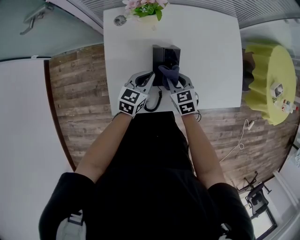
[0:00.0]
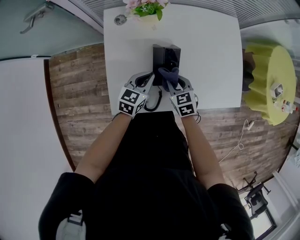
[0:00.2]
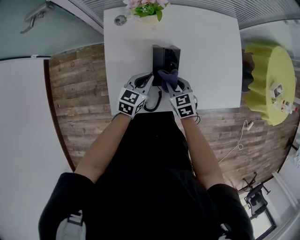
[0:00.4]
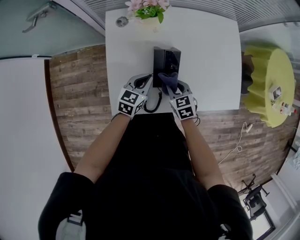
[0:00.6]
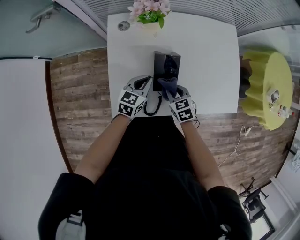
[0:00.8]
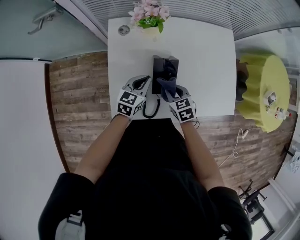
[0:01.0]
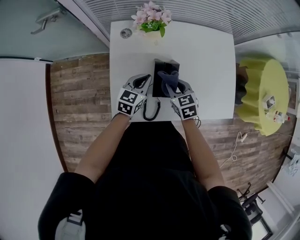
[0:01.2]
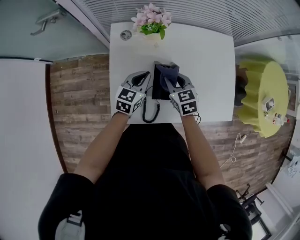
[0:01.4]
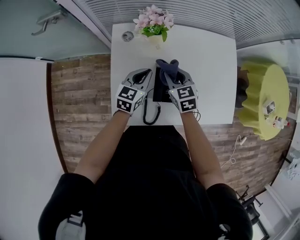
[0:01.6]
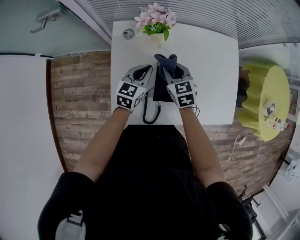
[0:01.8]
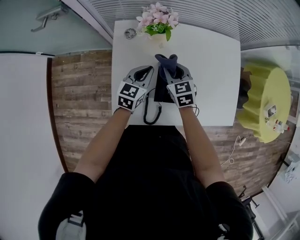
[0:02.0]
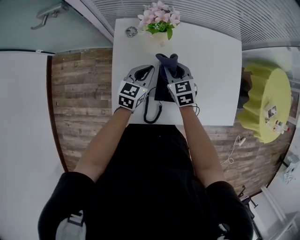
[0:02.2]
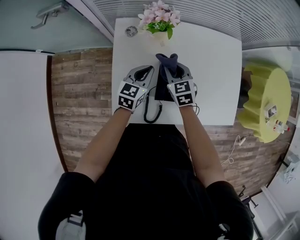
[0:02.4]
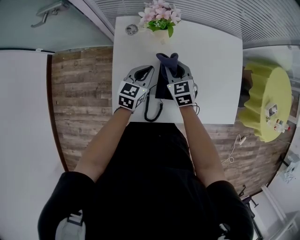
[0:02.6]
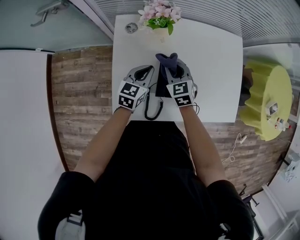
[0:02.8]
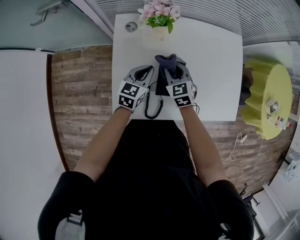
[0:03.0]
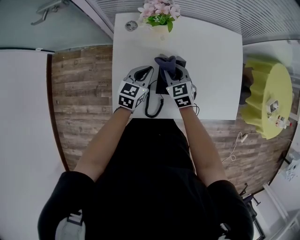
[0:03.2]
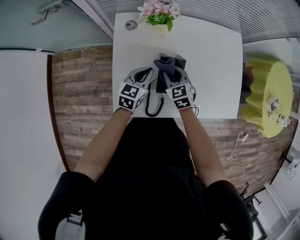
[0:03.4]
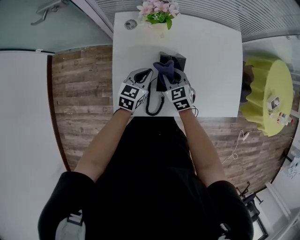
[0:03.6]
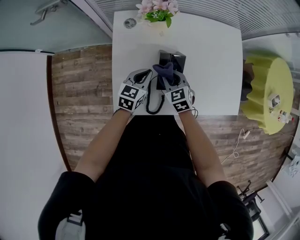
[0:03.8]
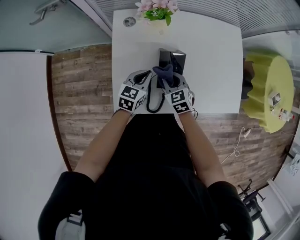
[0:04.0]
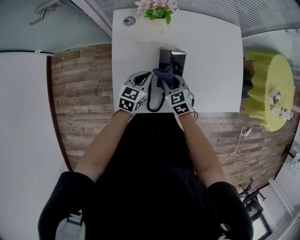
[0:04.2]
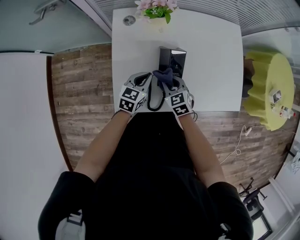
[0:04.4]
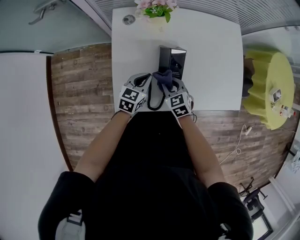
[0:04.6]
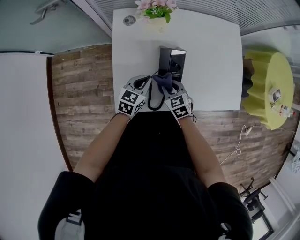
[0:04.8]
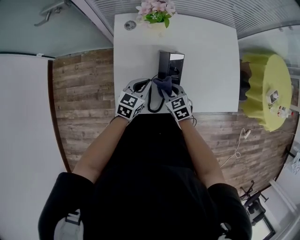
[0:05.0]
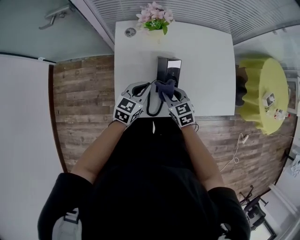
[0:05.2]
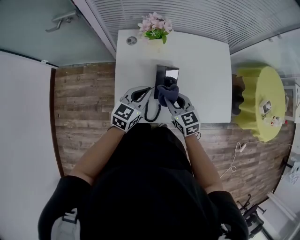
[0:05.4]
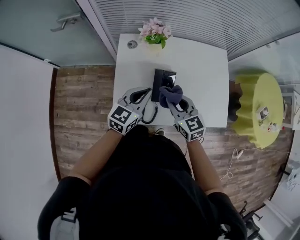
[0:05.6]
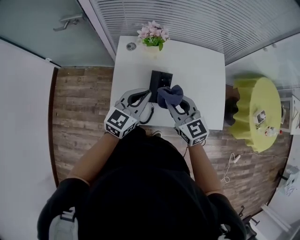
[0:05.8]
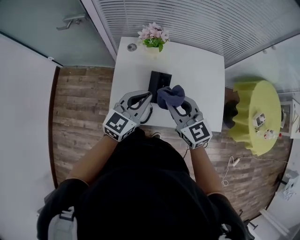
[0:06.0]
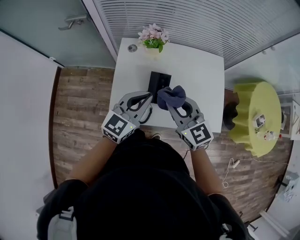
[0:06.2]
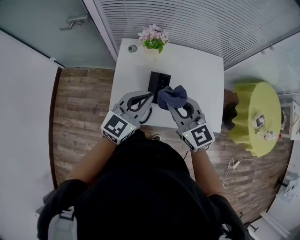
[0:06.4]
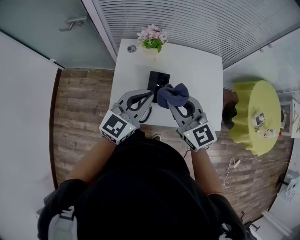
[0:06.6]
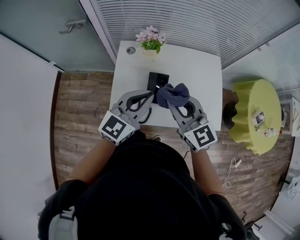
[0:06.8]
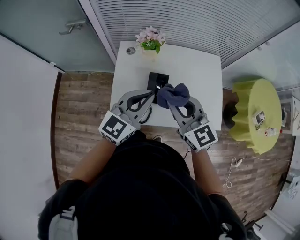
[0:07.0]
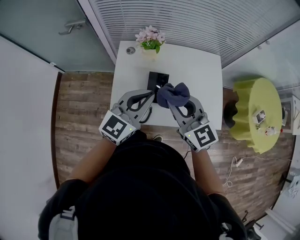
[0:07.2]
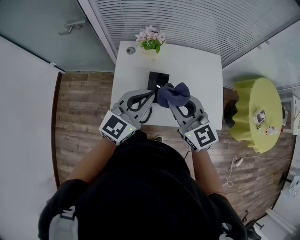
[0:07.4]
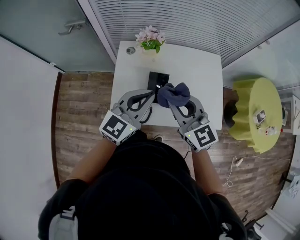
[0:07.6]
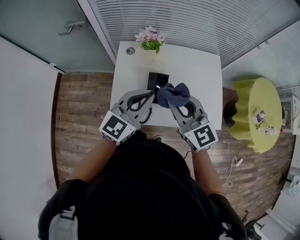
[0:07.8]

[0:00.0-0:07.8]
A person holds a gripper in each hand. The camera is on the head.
0:00.0 to 0:01.6: The grippers both shift forward and upward by about 10 cm.
0:01.6 to 0:03.2: The right gripper shifts approximately 5 cm downward.
0:03.2 to 0:04.6: The right gripper is displaced backward and downward by approximately 10 cm. The left gripper shifts about 5 cm backward.
0:04.6 to 0:06.2: Both grippers move upward, roughly 30 cm. The right gripper angles its fingers upward, by some 30 degrees. The left gripper turns by about 20 degrees.
0:06.2 to 0:07.8: The two grippers go roughly 5 cm upward.

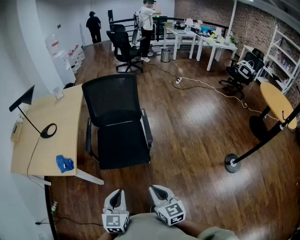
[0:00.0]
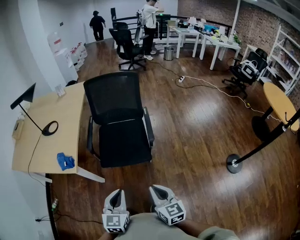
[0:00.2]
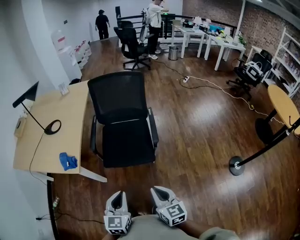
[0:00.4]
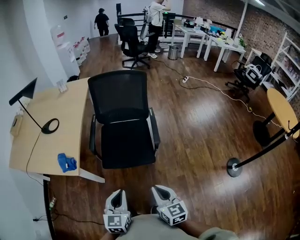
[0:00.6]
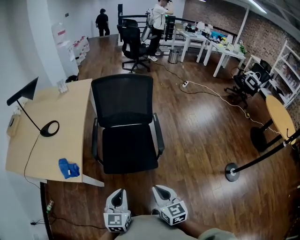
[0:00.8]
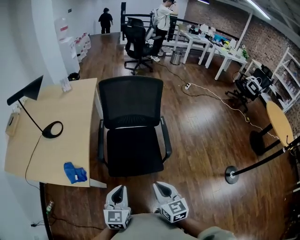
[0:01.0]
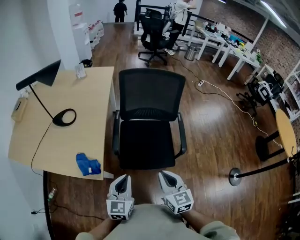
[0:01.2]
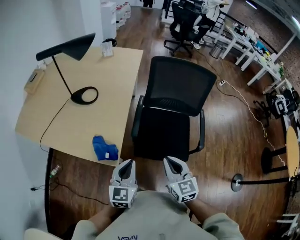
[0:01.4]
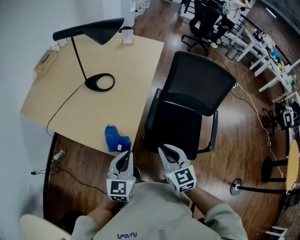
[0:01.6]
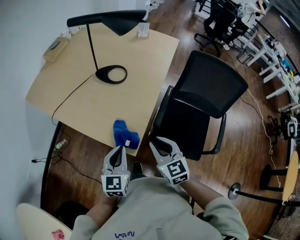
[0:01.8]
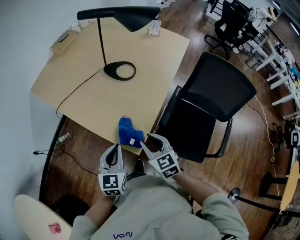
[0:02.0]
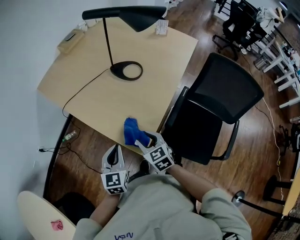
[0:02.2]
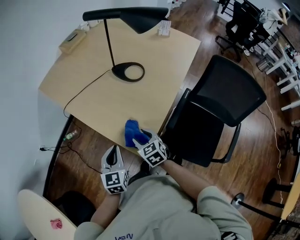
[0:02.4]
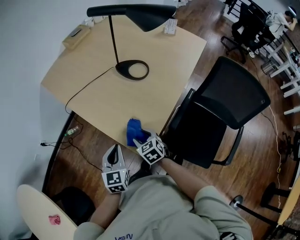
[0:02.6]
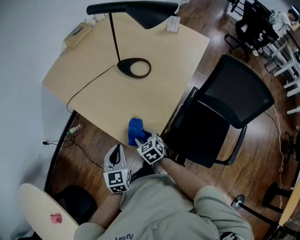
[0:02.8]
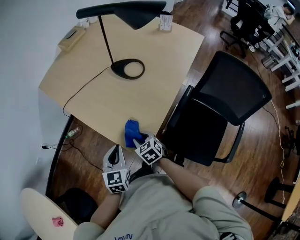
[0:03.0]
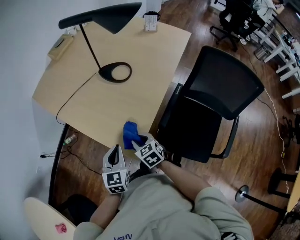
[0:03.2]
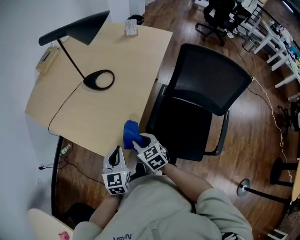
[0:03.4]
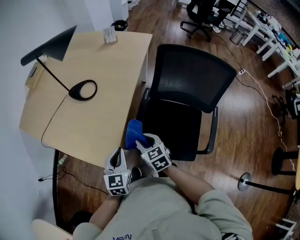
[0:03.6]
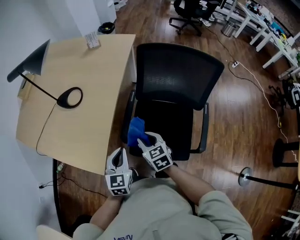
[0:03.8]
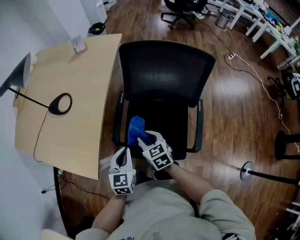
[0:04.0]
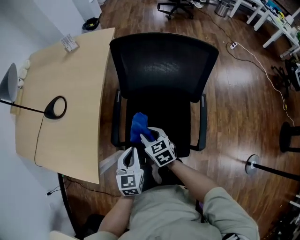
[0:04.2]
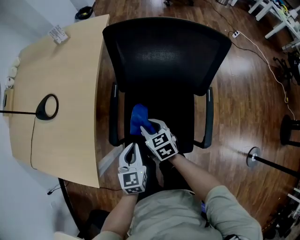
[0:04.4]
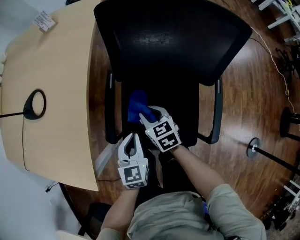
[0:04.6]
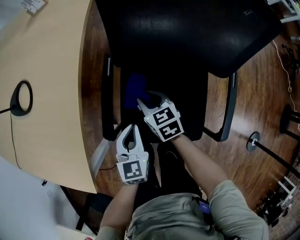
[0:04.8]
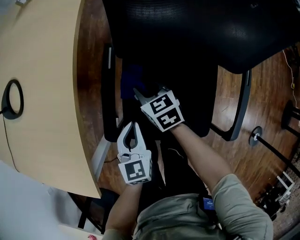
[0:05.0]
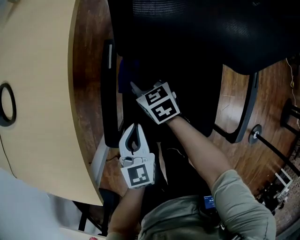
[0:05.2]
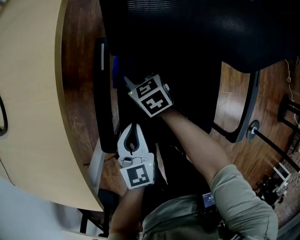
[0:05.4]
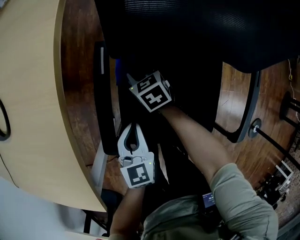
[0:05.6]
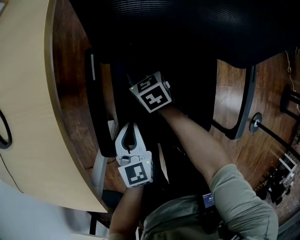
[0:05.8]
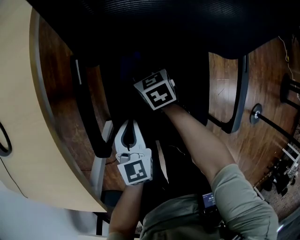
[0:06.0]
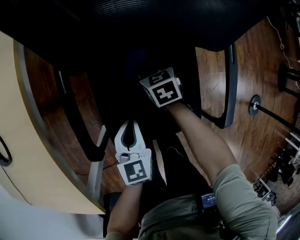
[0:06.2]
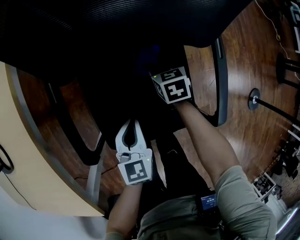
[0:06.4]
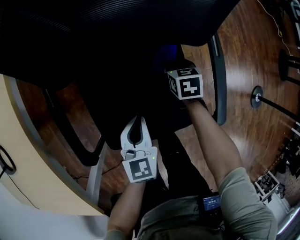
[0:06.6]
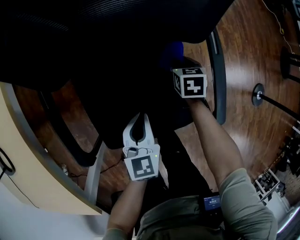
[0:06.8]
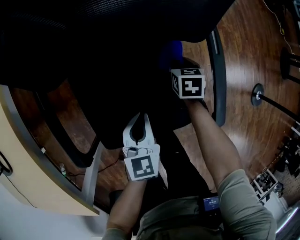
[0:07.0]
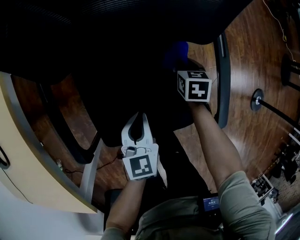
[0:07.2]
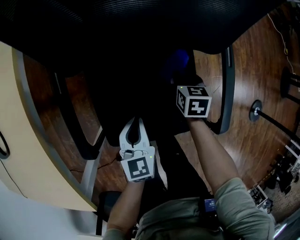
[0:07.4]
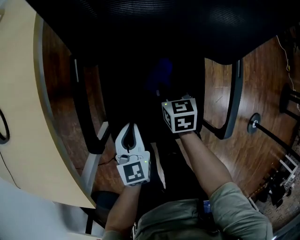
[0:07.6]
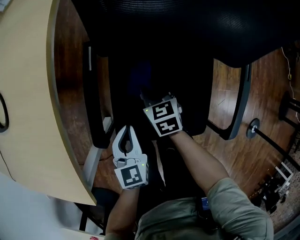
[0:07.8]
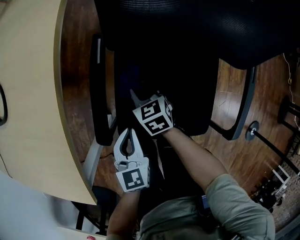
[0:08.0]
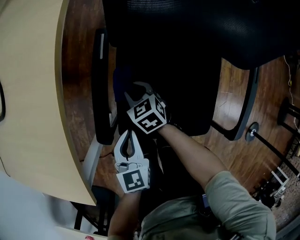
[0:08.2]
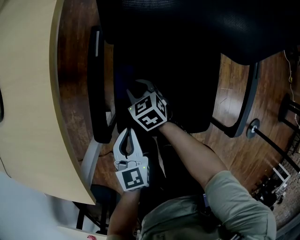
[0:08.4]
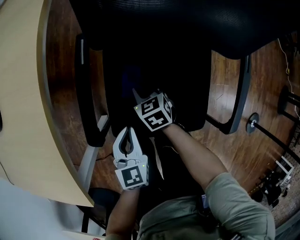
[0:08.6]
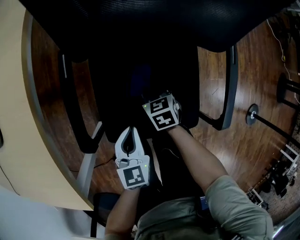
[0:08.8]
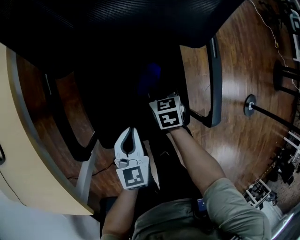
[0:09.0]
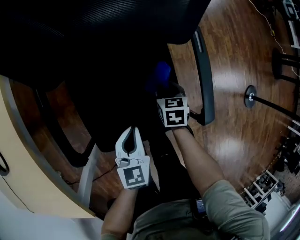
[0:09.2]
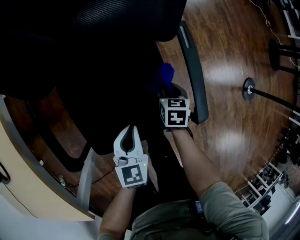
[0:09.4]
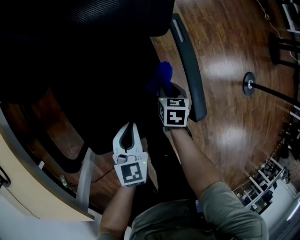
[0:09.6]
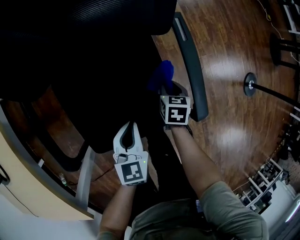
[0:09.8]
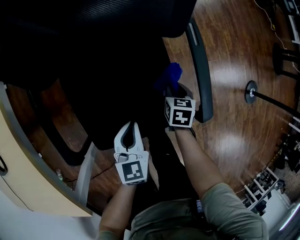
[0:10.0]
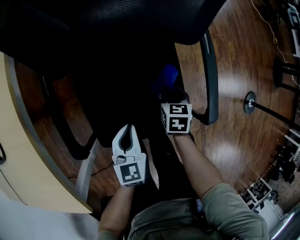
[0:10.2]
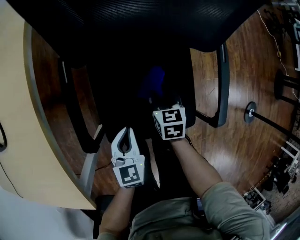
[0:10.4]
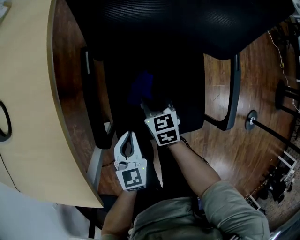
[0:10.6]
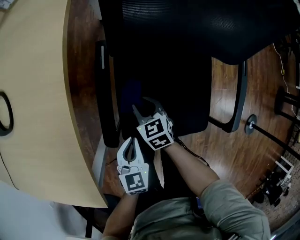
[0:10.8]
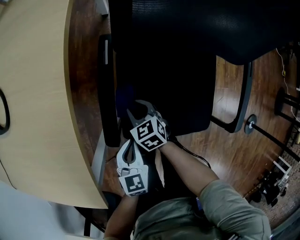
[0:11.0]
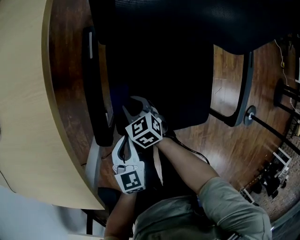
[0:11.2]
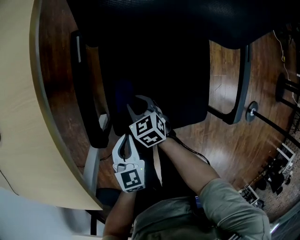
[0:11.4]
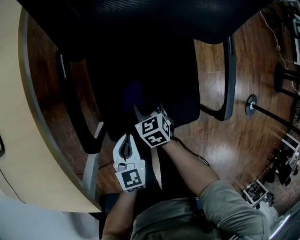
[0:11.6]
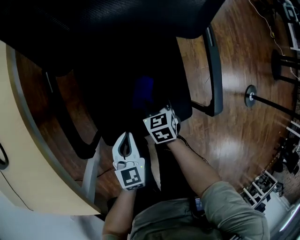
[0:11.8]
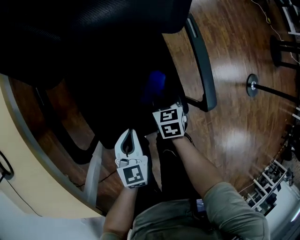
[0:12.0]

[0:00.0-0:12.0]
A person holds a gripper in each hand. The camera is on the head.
0:00.0 to 0:01.6: The two grippers travel together, to the left and forward, approximately 40 cm. The left gripper changes its angle by roughly 20 degrees, while the right gripper rotates approximately 30 degrees.
0:01.6 to 0:03.0: The left gripper changes place by about 15 cm, and changes its angle by about 30 degrees. The right gripper goes roughly 20 cm downward, rotates about 40 degrees, and opens its fingers.
0:03.0 to 0:04.4: The two grippers travel together, roughly 40 cm. The right gripper swivels approximately 40 degrees. Meanwhile the left gripper rotates approximately 30 degrees.
0:04.4 to 0:06.0: The right gripper goes roughly 25 cm downward and forward. Meanwhile the left gripper travels downward by about 20 cm.
0:07.6 to 0:09.0: The left gripper shifts by some 10 cm.
0:09.0 to 0:10.4: The right gripper goes to the right and returns, approximately 15 cm each way, while the left gripper goes roughly 5 cm to the left.

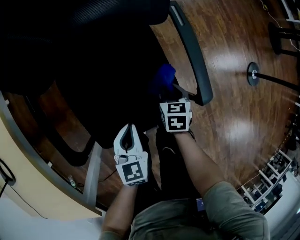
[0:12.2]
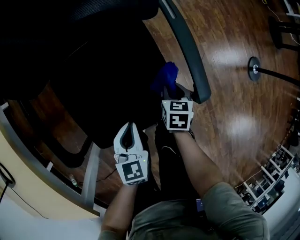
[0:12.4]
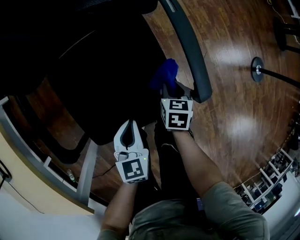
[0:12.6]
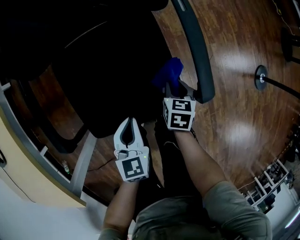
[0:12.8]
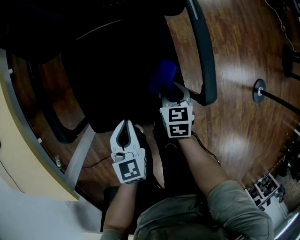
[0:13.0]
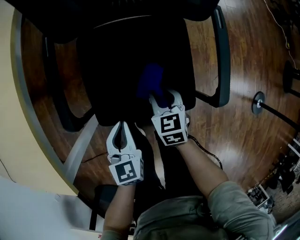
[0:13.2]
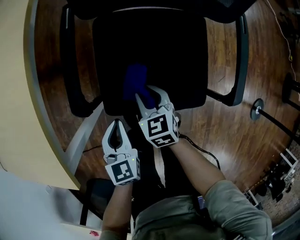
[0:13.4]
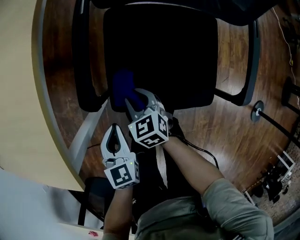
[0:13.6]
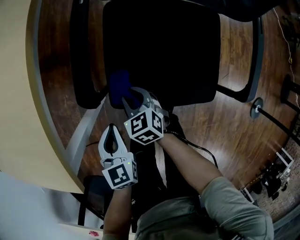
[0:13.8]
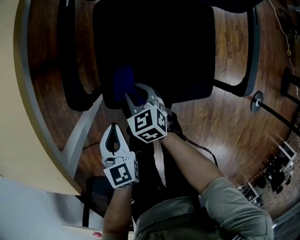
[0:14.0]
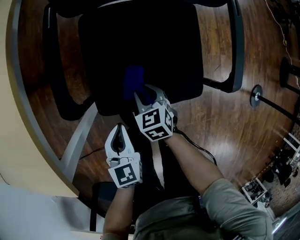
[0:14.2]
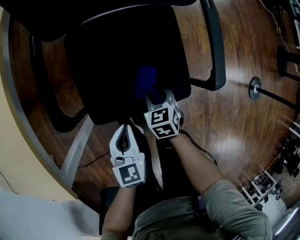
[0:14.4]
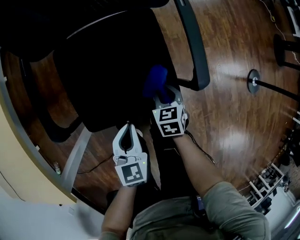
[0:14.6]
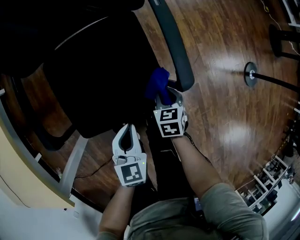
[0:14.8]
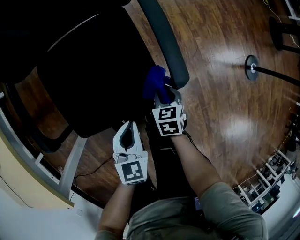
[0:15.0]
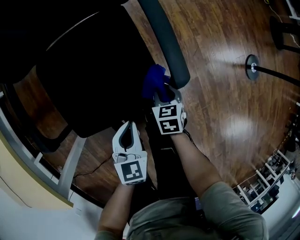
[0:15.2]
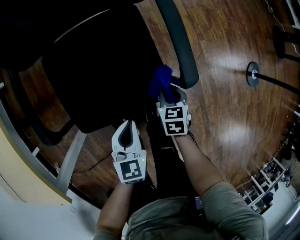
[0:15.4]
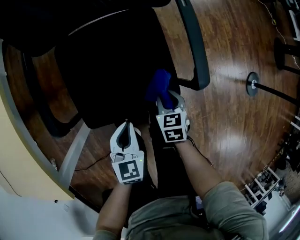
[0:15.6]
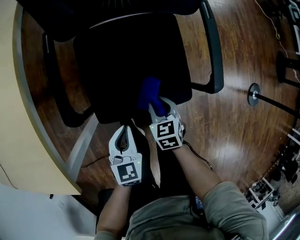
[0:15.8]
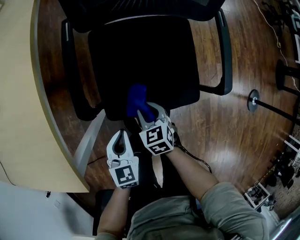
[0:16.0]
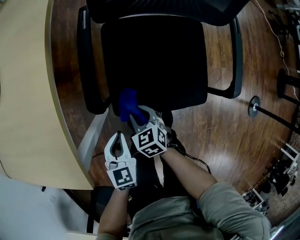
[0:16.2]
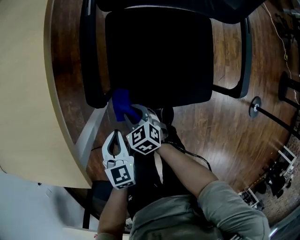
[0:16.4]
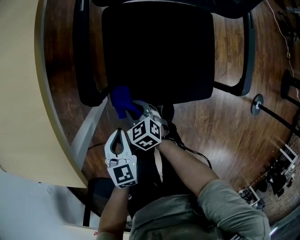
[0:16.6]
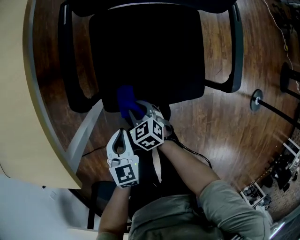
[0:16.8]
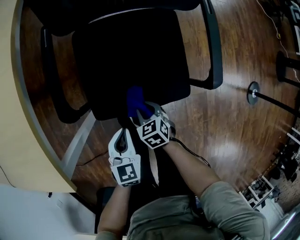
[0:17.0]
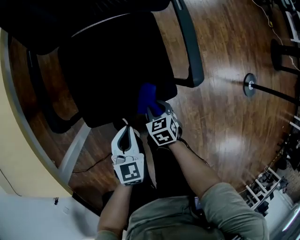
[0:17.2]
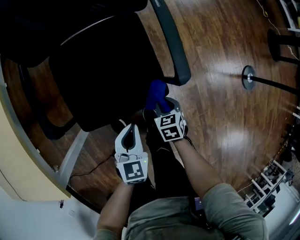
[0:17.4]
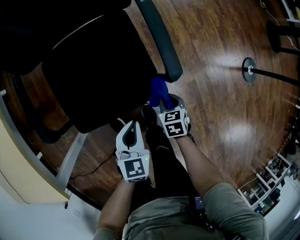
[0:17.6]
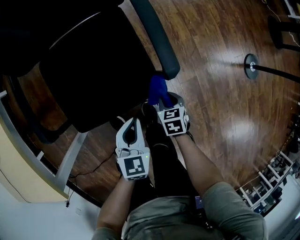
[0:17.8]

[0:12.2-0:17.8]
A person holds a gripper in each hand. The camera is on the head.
0:12.2 to 0:13.6: The right gripper changes place by some 35 cm, and rotates some 50 degrees, while the left gripper changes place by approximately 25 cm, and swivels about 30 degrees.
0:13.6 to 0:15.0: The left gripper shifts by approximately 30 cm, and changes its angle by roughly 40 degrees. Meanwhile the right gripper changes place by about 40 cm, and rotates some 50 degrees.
0:15.0 to 0:16.4: The right gripper moves about 40 cm, and rotates approximately 50 degrees. Meanwhile the left gripper ends up roughly 30 cm from where it was, and rotates some 30 degrees.
0:16.4 to 0:17.8: The right gripper shifts by some 40 cm, and turns by roughly 50 degrees. Meanwhile the left gripper shifts by roughly 35 cm, and turns by roughly 30 degrees.
